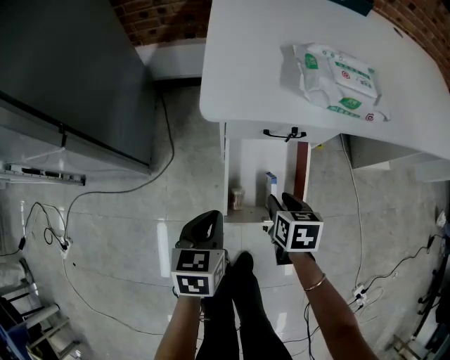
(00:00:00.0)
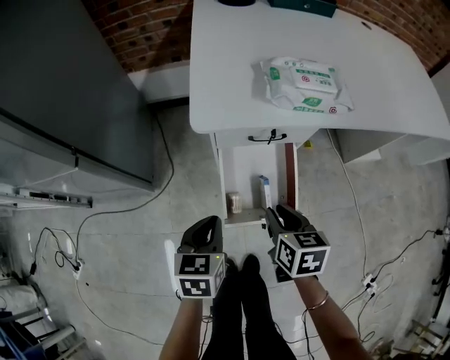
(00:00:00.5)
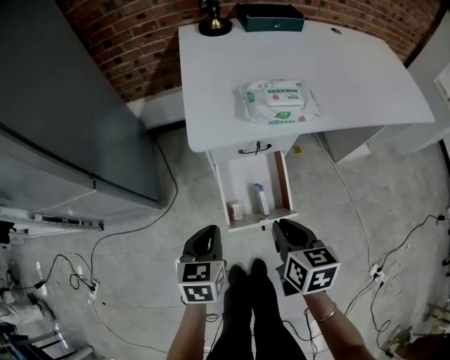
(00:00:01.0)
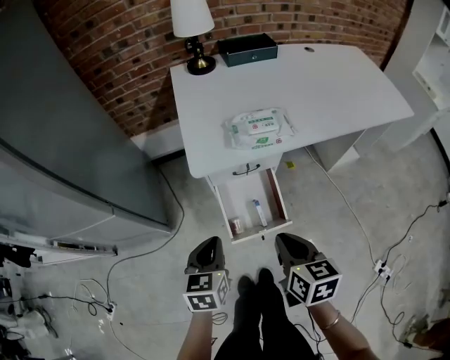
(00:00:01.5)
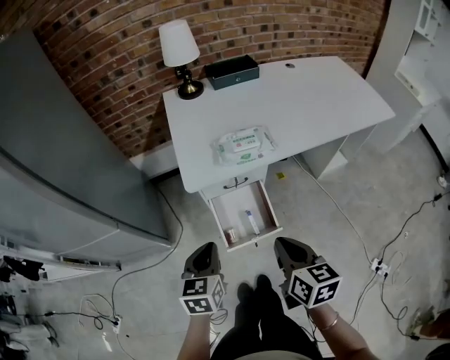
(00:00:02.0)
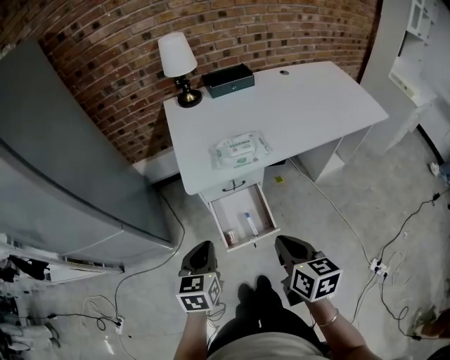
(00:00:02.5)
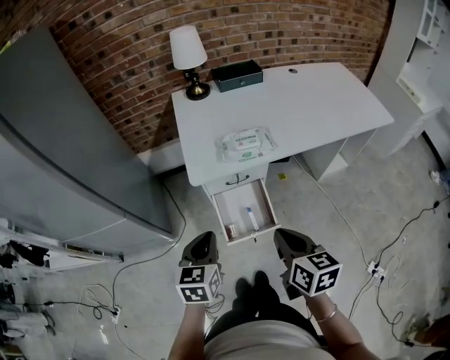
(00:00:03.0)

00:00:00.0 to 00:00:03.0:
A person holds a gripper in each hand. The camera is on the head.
00:00:00.0 to 00:00:01.5: The right gripper is displaced upward and backward by about 35 cm, swivels roughly 20 degrees, and closes its fingers. Meanwhile the left gripper travels upward by roughly 25 cm.
00:00:01.5 to 00:00:03.0: The right gripper goes about 15 cm upward and backward. The left gripper is displaced upward by approximately 15 cm.

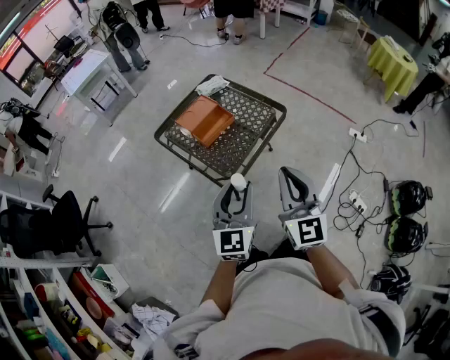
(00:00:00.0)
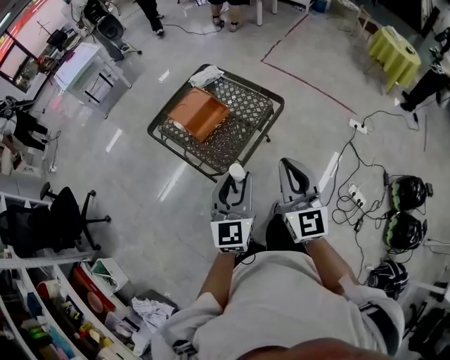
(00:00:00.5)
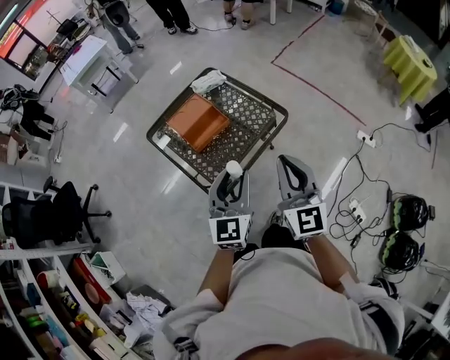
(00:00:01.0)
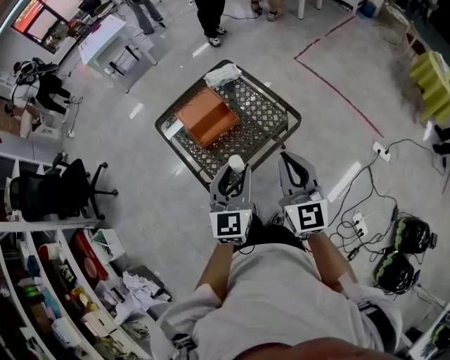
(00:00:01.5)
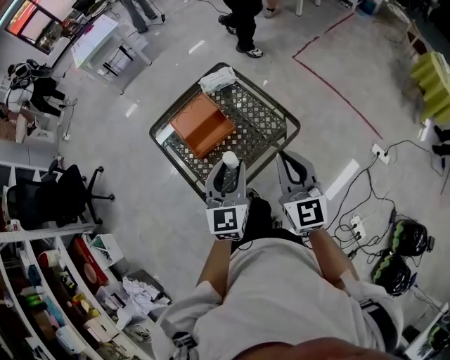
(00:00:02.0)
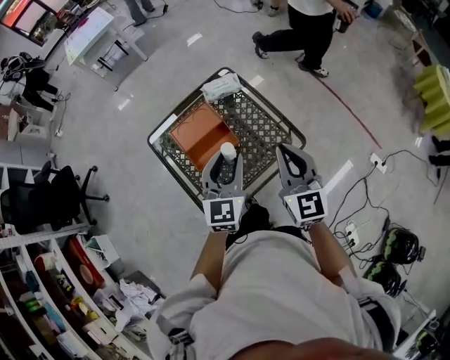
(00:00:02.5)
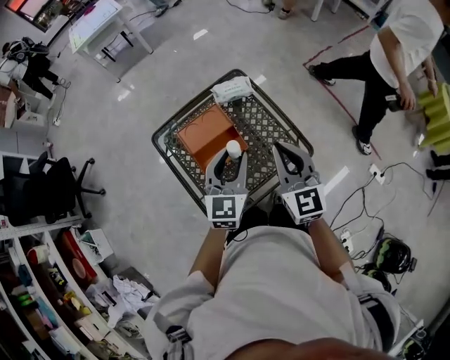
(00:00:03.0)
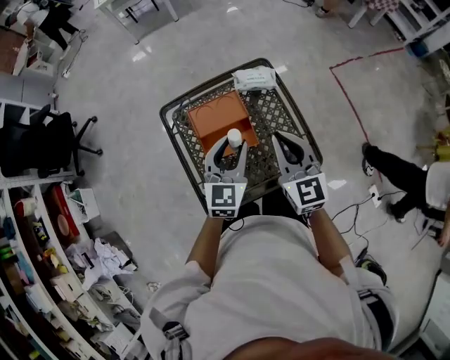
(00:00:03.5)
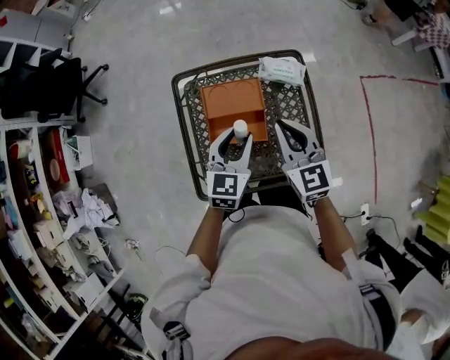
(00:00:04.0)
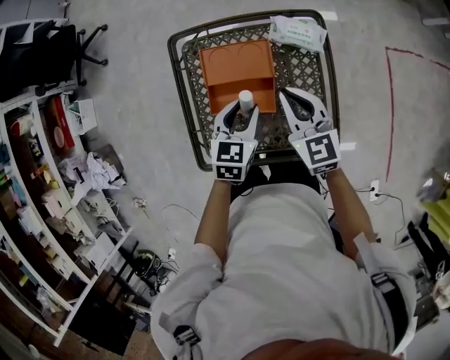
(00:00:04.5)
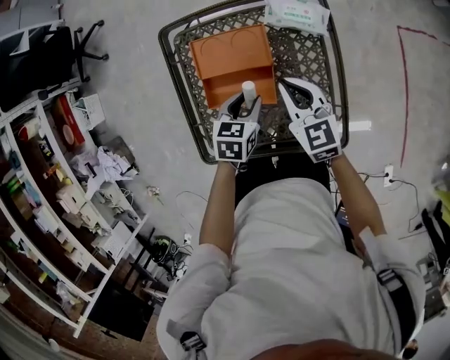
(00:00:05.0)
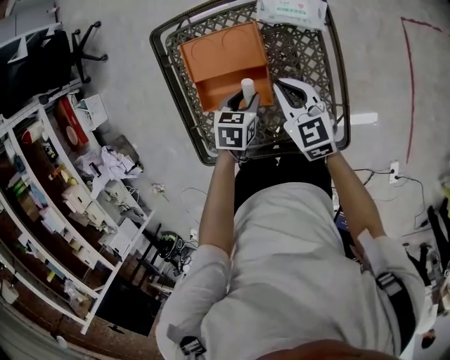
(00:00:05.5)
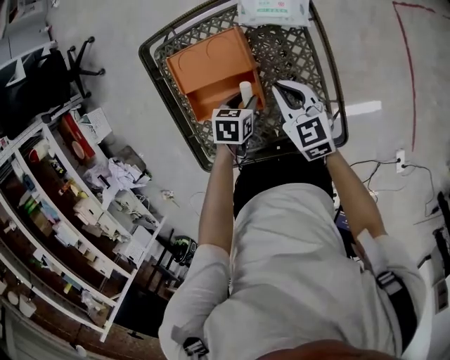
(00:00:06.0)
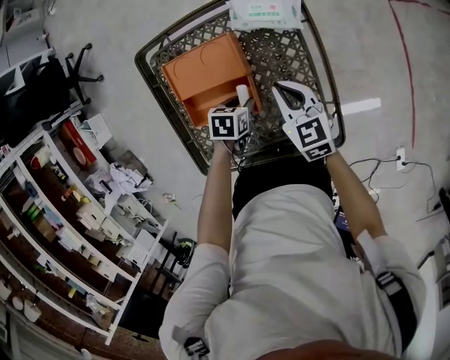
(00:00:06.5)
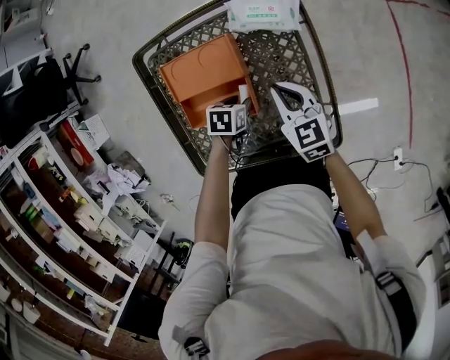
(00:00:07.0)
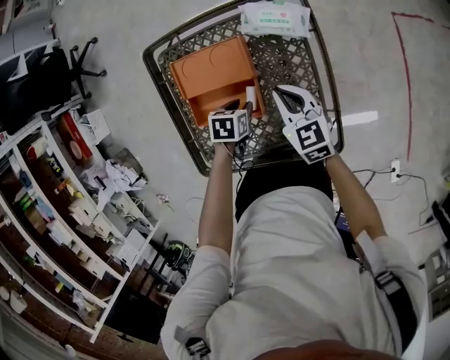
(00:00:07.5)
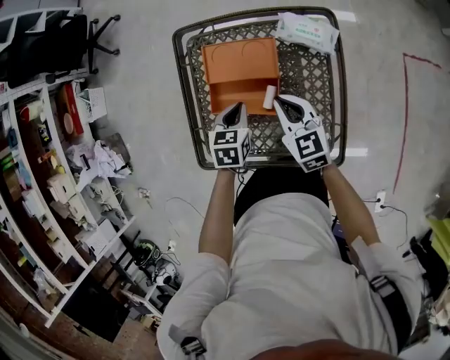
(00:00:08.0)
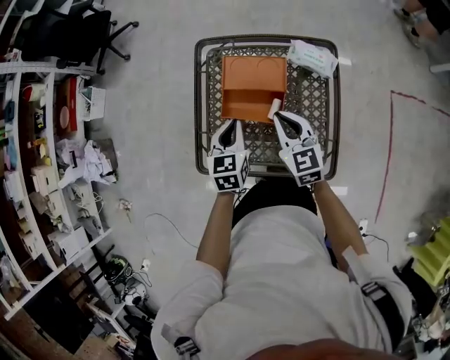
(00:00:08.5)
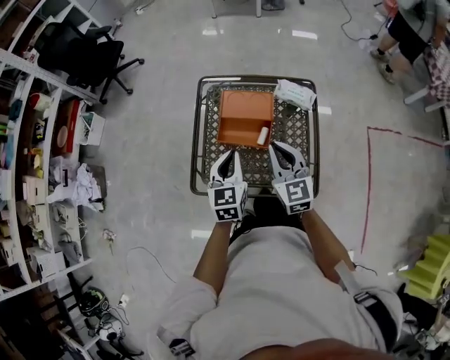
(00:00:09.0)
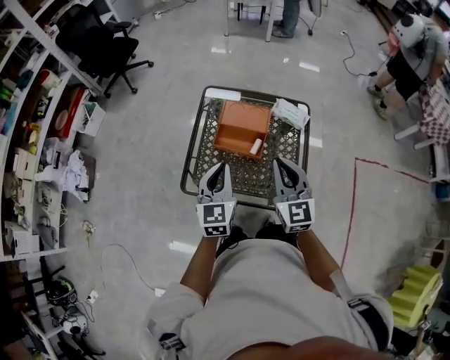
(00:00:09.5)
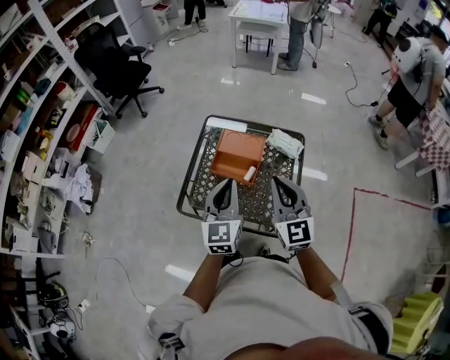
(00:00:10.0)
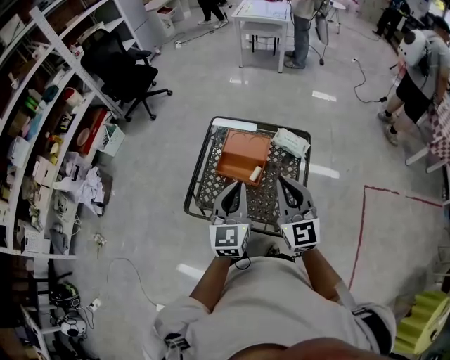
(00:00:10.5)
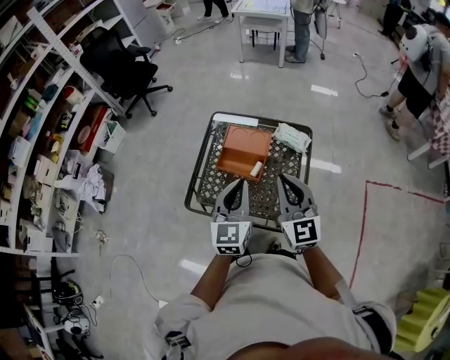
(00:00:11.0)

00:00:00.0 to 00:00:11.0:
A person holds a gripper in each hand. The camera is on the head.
00:00:00.0 to 00:00:02.0: The grippers both shift forward by roughly 30 cm.
00:00:02.0 to 00:00:03.5: The grippers both shift forward by roughly 25 cm. The right gripper rotates some 20 degrees.
00:00:03.5 to 00:00:05.5: The left gripper moves downward, approximately 30 cm, and points its fingers about 40 degrees further downward; the right gripper goes about 30 cm downward and forward, and turns by some 30 degrees.
00:00:07.5 to 00:00:09.0: The two grippers go roughly 25 cm upward. The right gripper turns by about 20 degrees, while the left gripper tips its fingers upward by approximately 50 degrees, and closes up.
00:00:09.0 to 00:00:11.0: Both grippers move upward, backward and to the right, some 15 cm.

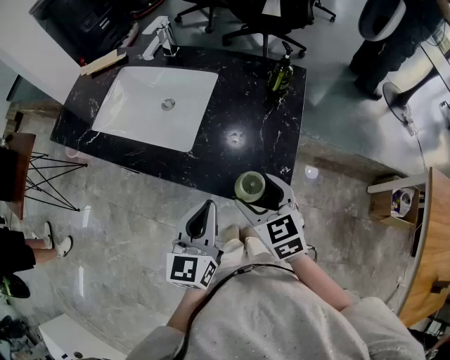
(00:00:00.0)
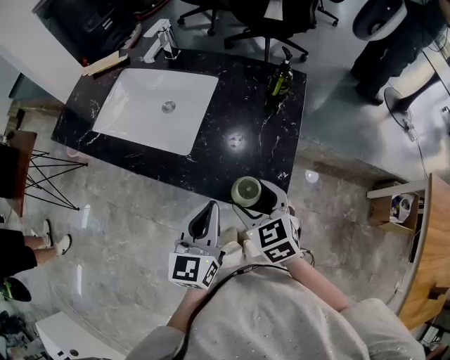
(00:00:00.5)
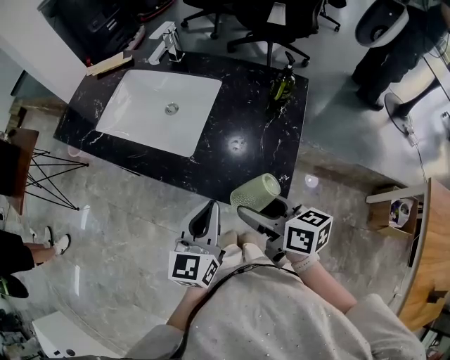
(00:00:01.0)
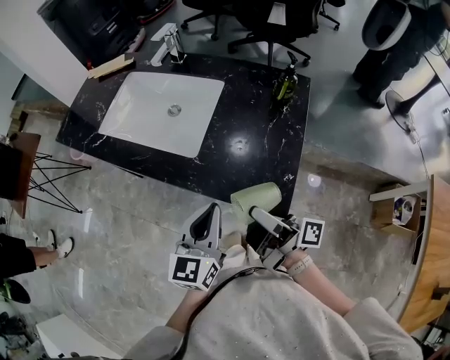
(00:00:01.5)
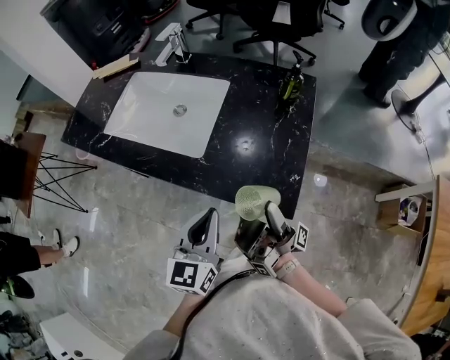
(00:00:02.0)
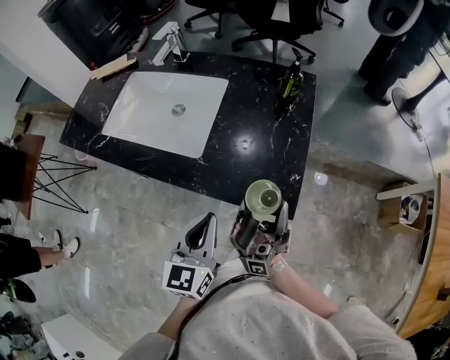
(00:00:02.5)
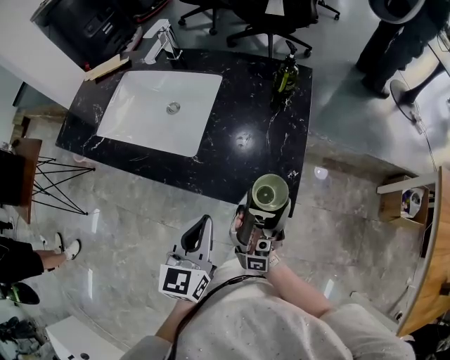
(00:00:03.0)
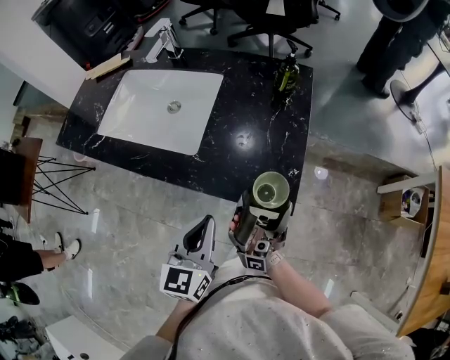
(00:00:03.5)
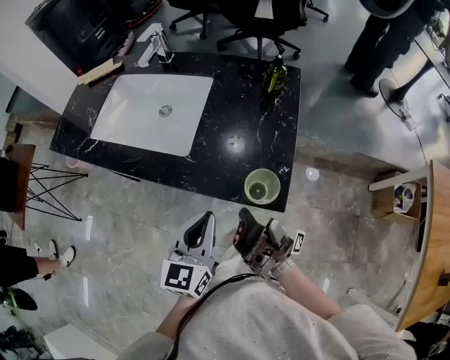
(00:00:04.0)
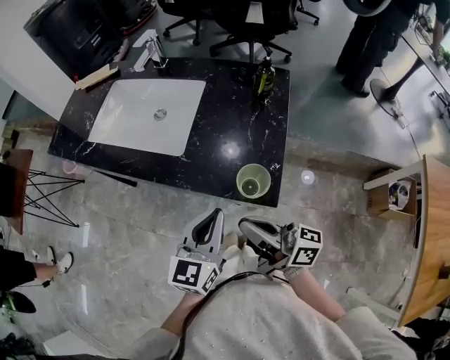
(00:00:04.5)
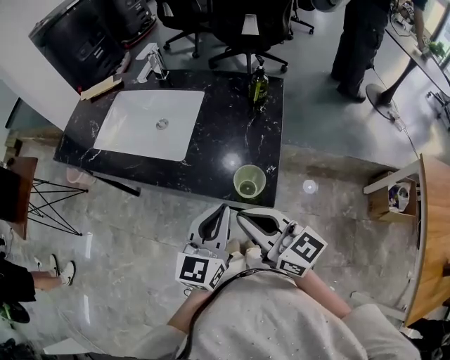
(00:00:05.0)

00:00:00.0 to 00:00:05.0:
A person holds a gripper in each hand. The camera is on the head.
00:00:02.5 to 00:00:05.0: The left gripper changes place by roughly 10 cm.

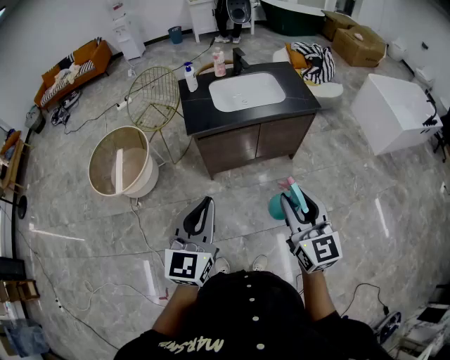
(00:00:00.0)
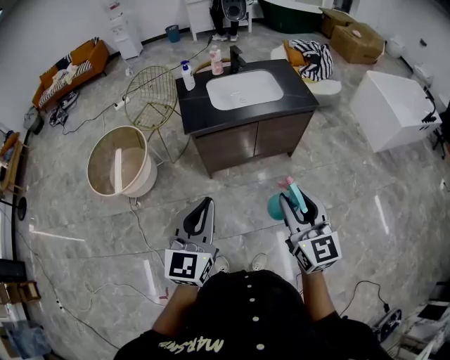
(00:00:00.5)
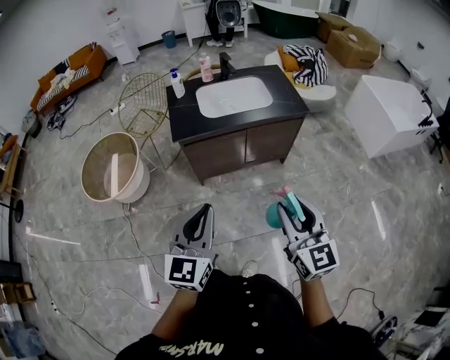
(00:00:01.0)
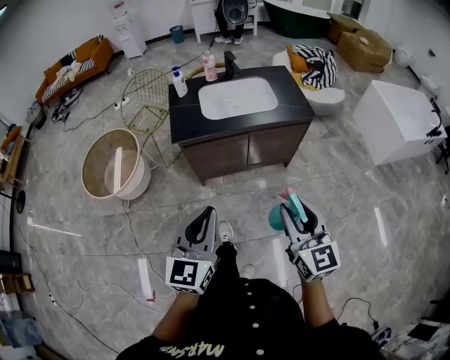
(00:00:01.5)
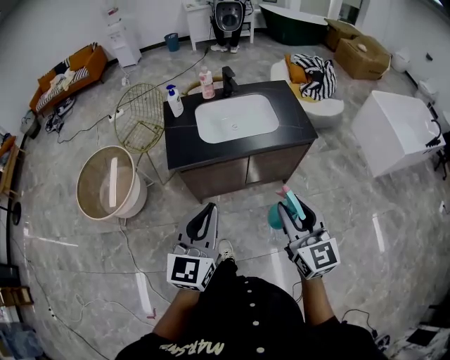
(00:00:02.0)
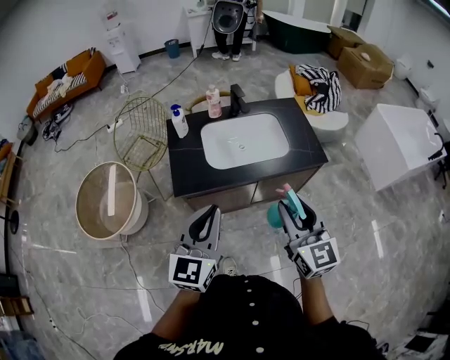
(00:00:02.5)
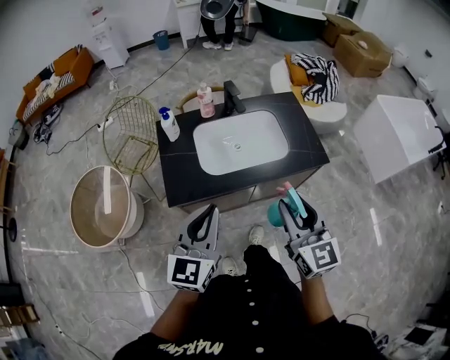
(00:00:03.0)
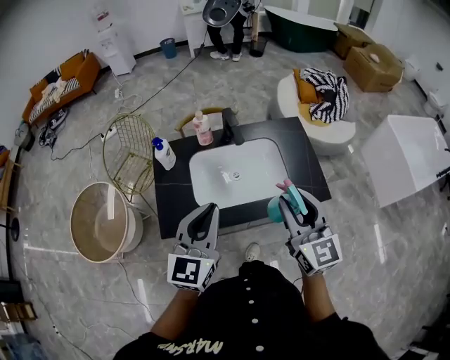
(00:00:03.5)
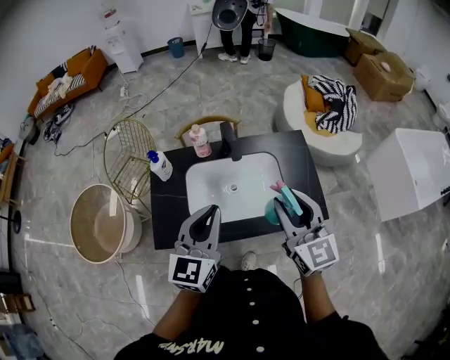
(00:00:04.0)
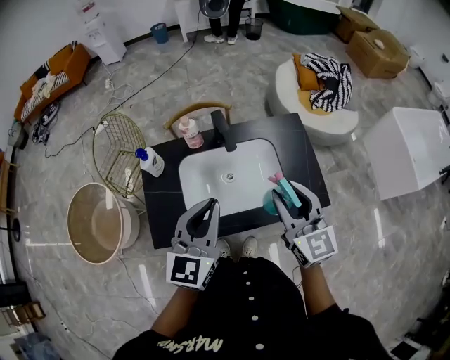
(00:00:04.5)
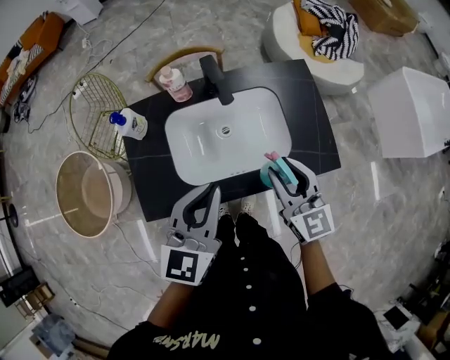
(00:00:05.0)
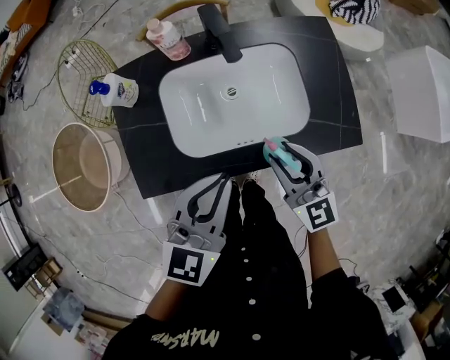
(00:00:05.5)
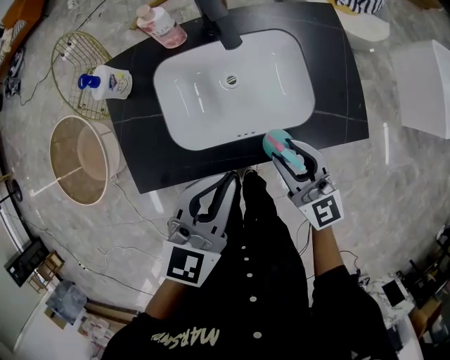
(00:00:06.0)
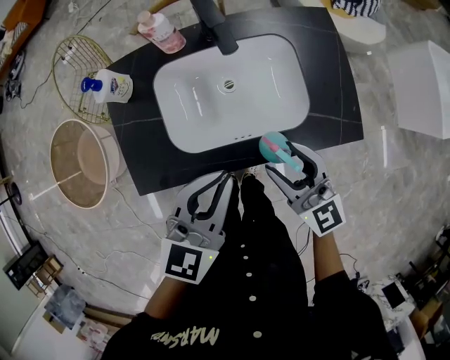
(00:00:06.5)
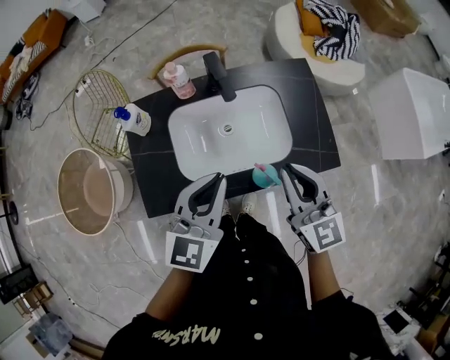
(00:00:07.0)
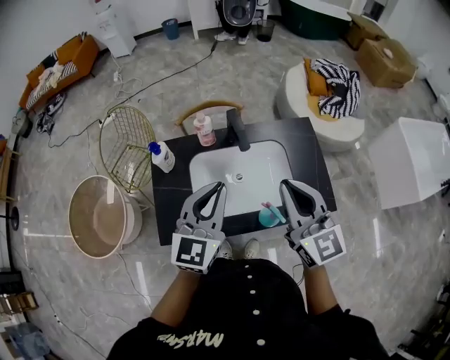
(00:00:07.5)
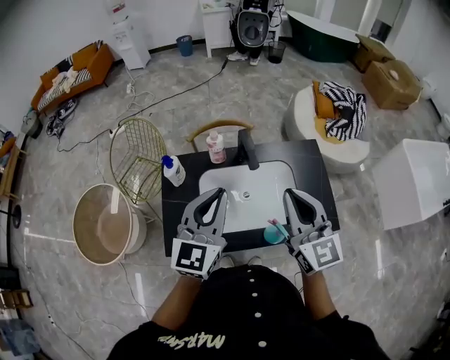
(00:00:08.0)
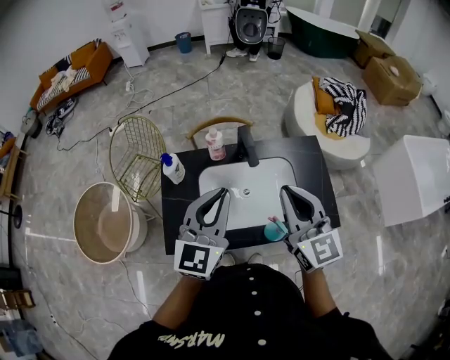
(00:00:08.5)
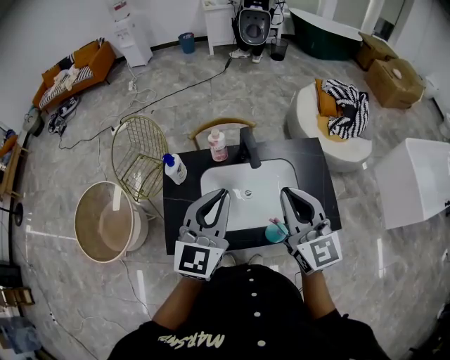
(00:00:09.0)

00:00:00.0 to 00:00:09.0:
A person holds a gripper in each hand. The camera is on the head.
00:00:00.0 to 00:00:02.0: Both grippers move forward and to the right, roughly 20 cm.
00:00:02.0 to 00:00:04.5: The two grippers travel together, forward, approximately 40 cm.
00:00:04.5 to 00:00:07.0: The right gripper reaches approximately 20 cm downward, then returns, and closes, while the left gripper is displaced downward by roughly 10 cm.
00:00:07.0 to 00:00:09.0: The grippers both shift upward and to the left by about 10 cm.
